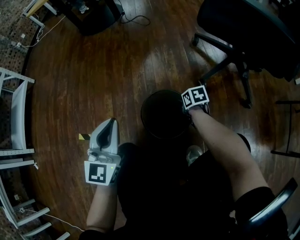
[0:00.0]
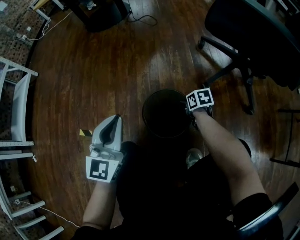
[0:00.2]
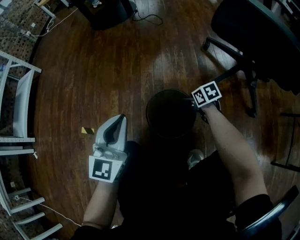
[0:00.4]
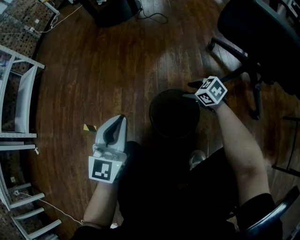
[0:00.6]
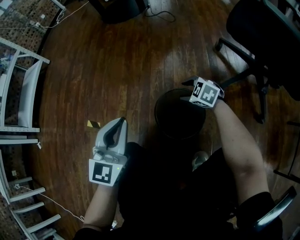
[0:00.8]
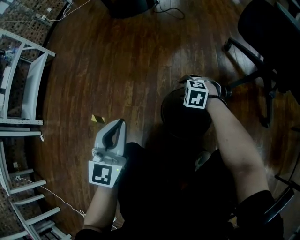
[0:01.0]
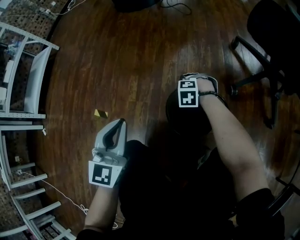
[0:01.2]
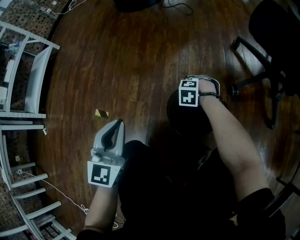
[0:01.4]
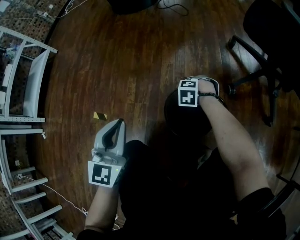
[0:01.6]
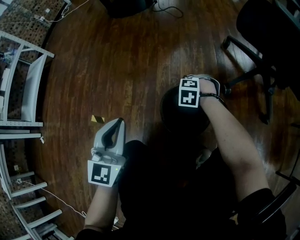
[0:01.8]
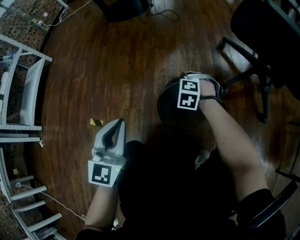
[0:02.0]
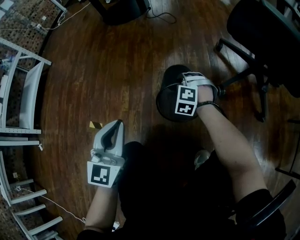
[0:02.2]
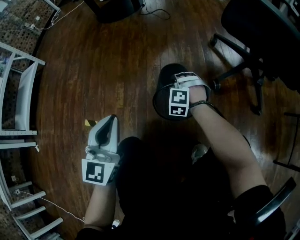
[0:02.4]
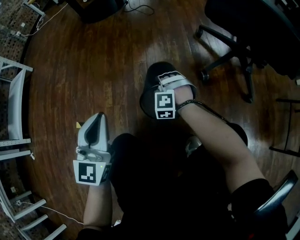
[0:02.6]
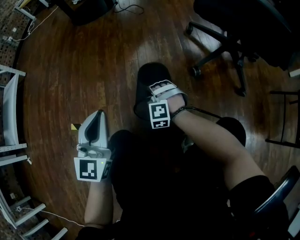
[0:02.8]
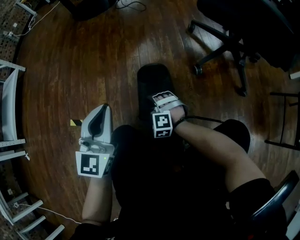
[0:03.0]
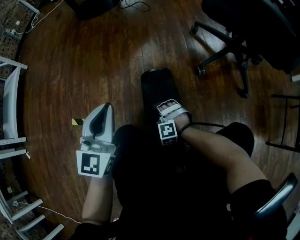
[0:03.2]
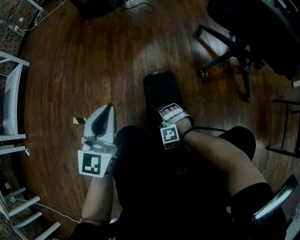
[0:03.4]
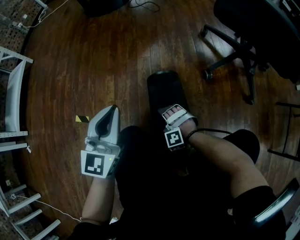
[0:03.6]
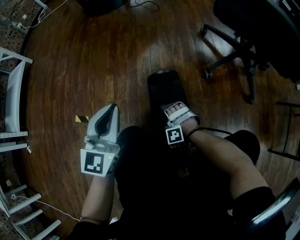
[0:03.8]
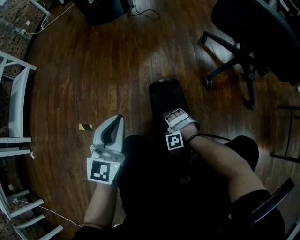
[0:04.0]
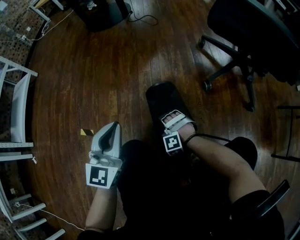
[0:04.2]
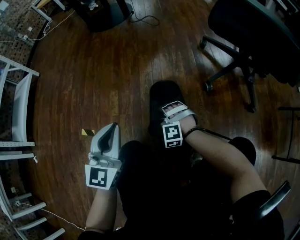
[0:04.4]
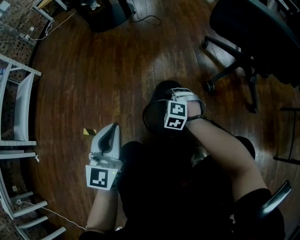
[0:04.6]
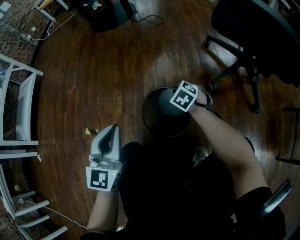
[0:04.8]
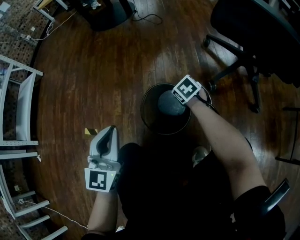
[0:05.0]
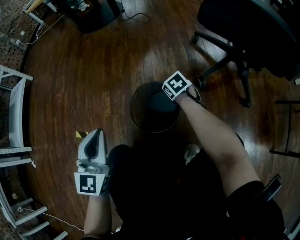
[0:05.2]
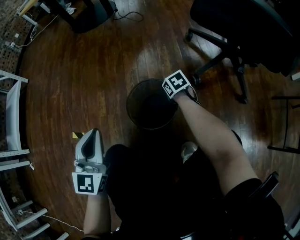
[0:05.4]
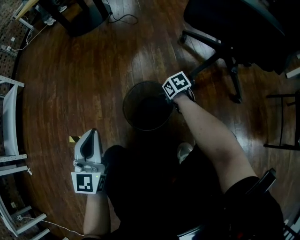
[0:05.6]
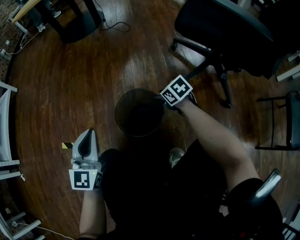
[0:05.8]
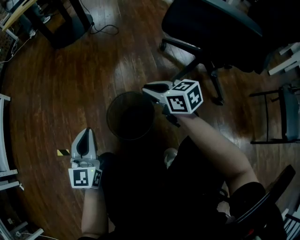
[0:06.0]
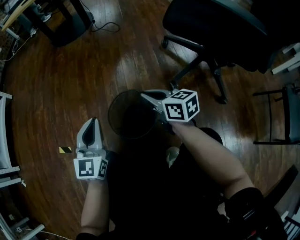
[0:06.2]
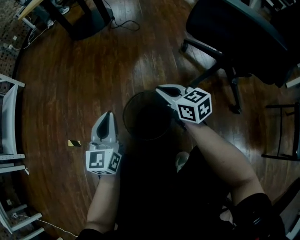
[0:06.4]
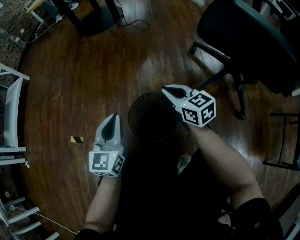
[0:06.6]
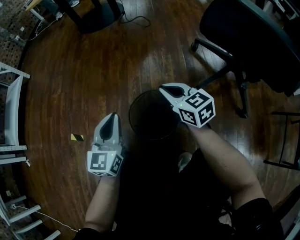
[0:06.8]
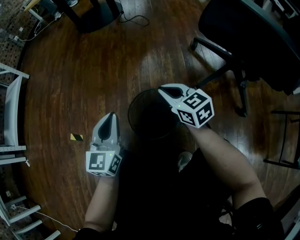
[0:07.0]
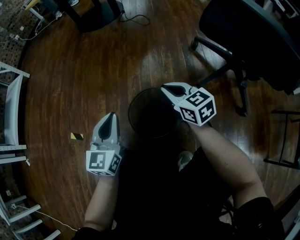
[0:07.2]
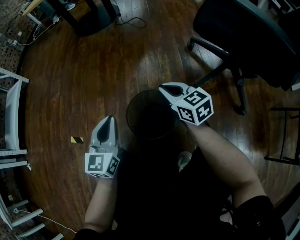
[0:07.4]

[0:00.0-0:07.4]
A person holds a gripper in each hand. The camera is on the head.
0:00.0 to 0:01.4: The left gripper moves some 5 cm. Meanwhile the right gripper moves roughly 10 cm upward and comes back, rotates around the line of its fingers by about 90 degrees, counterclockwise from behind, and opens and closes again.
0:01.4 to 0:03.0: The left gripper ends up some 5 cm from where it was. Meanwhile the right gripper reaches roughly 10 cm upward, then returns, and rotates roughly 30 degrees.
0:03.0 to 0:04.4: The right gripper moves some 5 cm backward and comes back, and opens and closes again.
0:04.4 to 0:06.0: The left gripper changes place by about 5 cm; the right gripper is displaced upward and to the right by approximately 20 cm, and rolls clockwise, seen from behind, by about 80 degrees.
0:06.0 to 0:07.4: There are only small adjustments of the grippers.

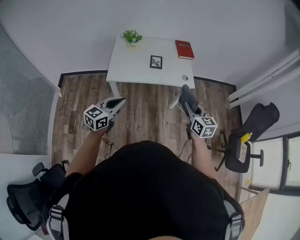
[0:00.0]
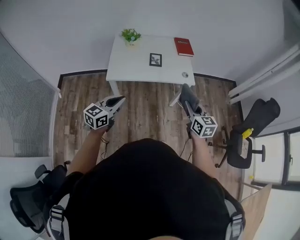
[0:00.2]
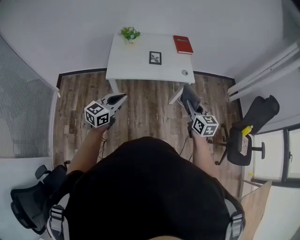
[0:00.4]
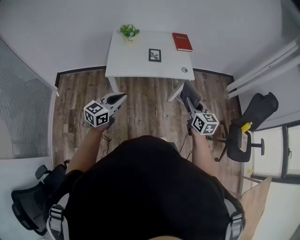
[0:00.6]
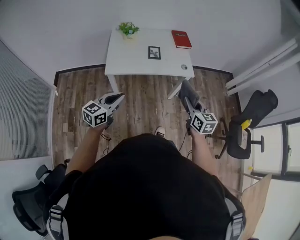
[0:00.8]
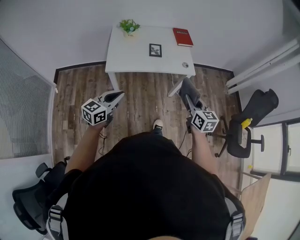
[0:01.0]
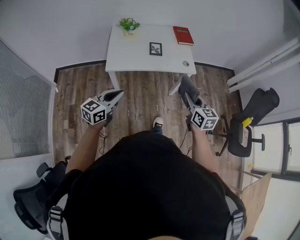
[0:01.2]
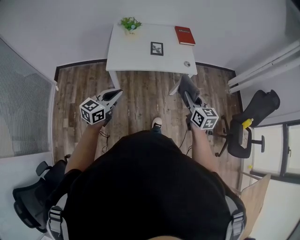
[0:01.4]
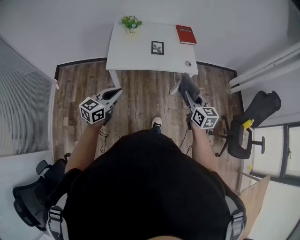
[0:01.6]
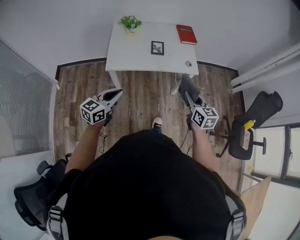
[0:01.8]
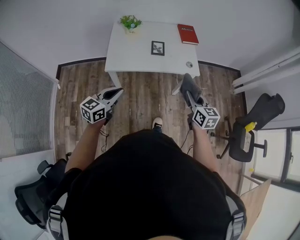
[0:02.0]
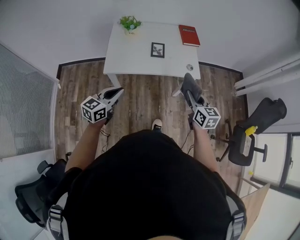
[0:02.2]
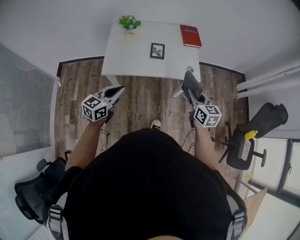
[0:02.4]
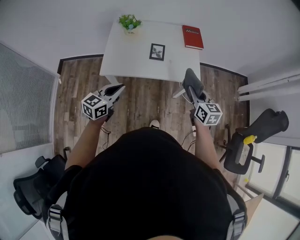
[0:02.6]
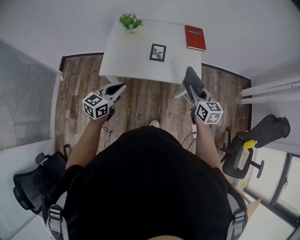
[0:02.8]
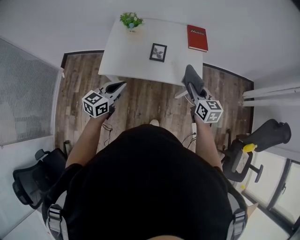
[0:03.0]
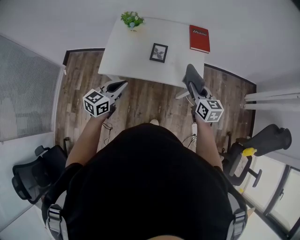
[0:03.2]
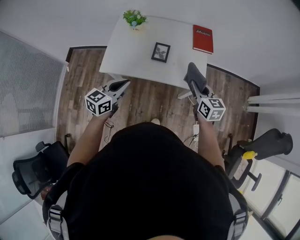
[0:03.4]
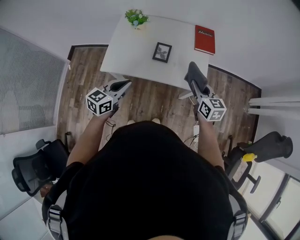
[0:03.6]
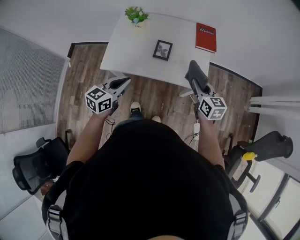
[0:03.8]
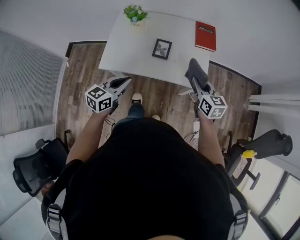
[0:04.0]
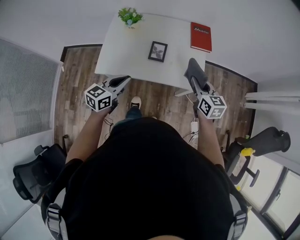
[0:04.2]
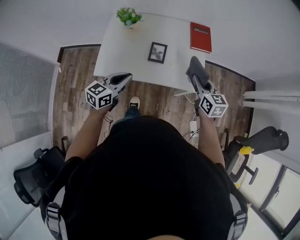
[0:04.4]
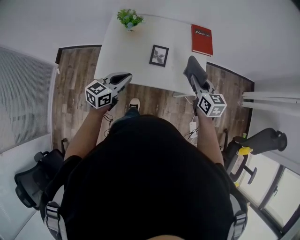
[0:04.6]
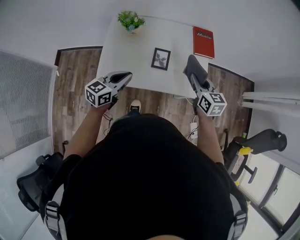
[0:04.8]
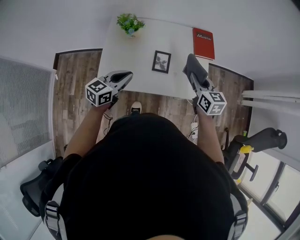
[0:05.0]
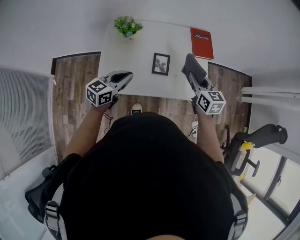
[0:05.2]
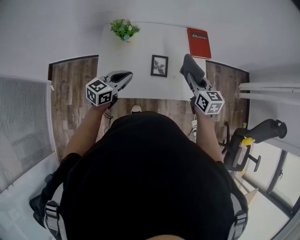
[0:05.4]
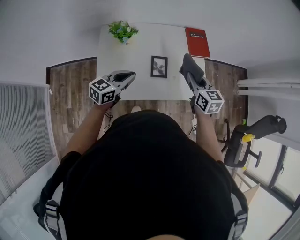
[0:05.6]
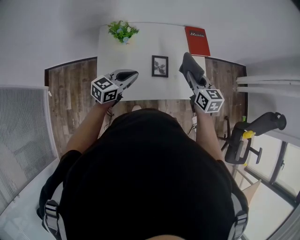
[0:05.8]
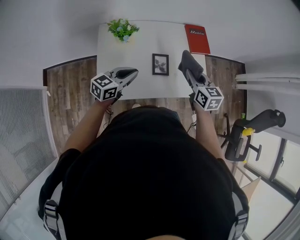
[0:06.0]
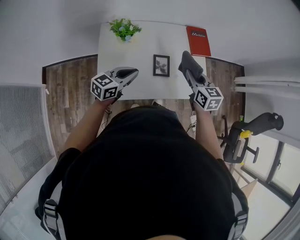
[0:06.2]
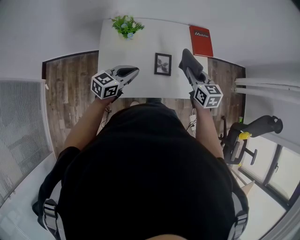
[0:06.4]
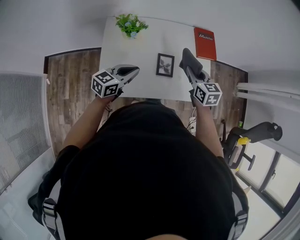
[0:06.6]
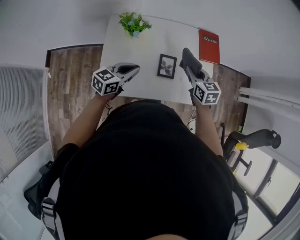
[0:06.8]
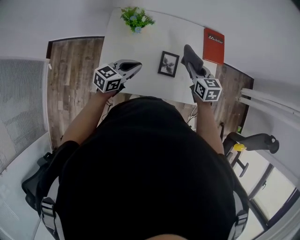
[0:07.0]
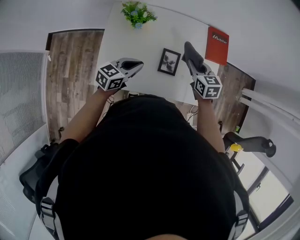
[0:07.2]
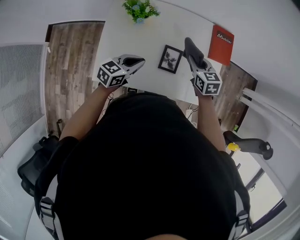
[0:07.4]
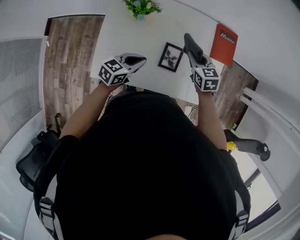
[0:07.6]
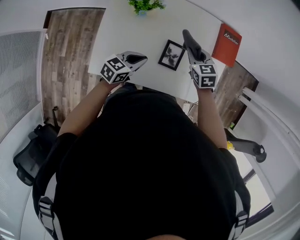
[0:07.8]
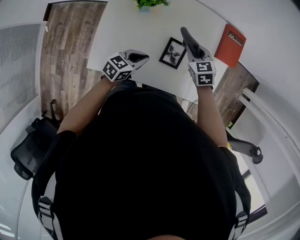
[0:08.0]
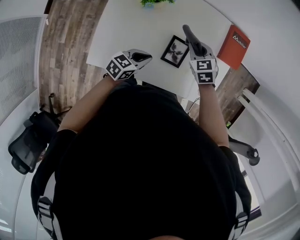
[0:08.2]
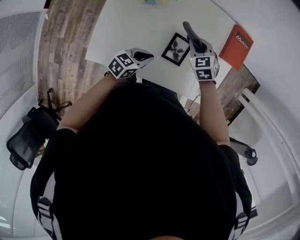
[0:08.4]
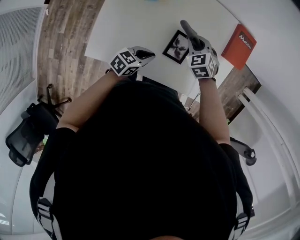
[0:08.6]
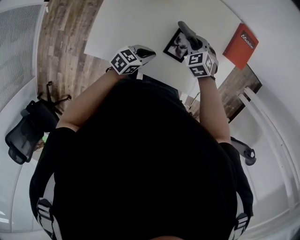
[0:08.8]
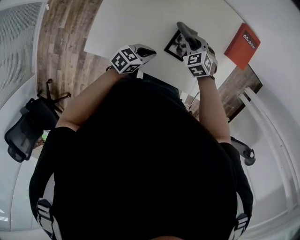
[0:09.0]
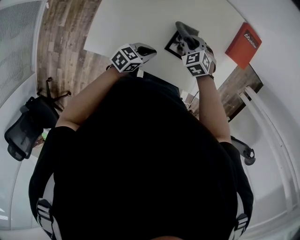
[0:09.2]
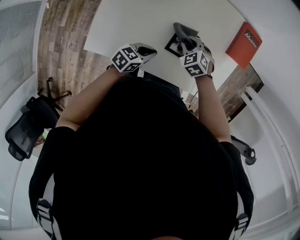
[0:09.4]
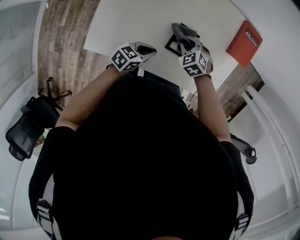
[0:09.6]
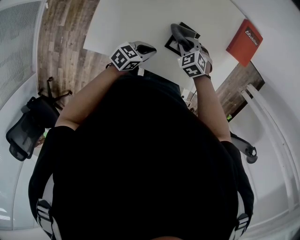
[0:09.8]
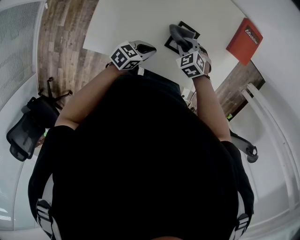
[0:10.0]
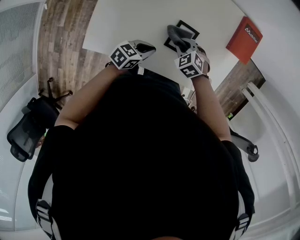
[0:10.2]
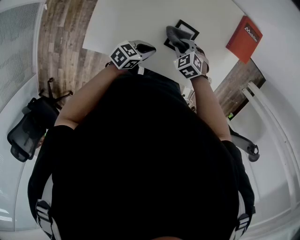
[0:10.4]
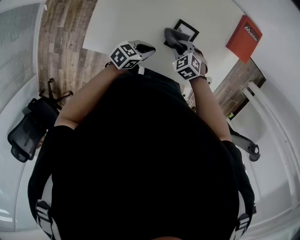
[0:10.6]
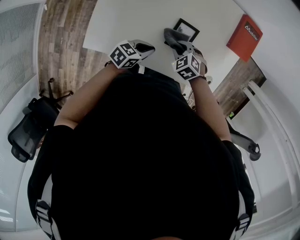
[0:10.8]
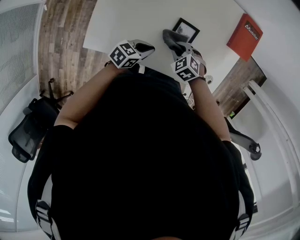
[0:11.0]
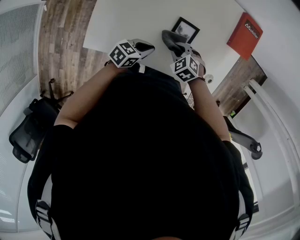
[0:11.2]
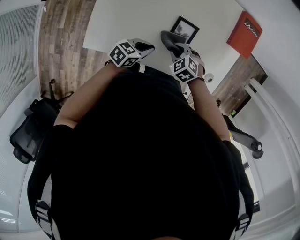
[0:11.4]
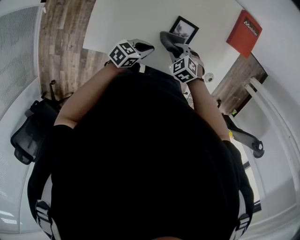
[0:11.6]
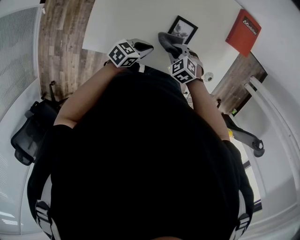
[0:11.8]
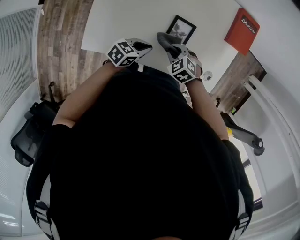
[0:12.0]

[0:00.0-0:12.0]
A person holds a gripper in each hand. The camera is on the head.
0:00.0 to 0:01.6: The grippers stay close to where they were, moving slightly.
0:01.6 to 0:03.0: The right gripper moves forward, roughly 25 cm. Meanwhile the left gripper goes about 20 cm forward and to the right.
0:03.0 to 0:04.4: The two grippers go about 10 cm forward.
0:04.4 to 0:06.0: The right gripper goes about 15 cm to the left and forward. Meanwhile the left gripper goes some 15 cm forward and to the left.
0:06.0 to 0:07.6: The right gripper heads downward, forward and to the left, covering about 20 cm, and turns by about 30 degrees; the left gripper goes approximately 15 cm downward and forward.
0:07.6 to 0:09.0: The left gripper is displaced downward and to the right by roughly 15 cm. The right gripper travels downward by some 15 cm, and swivels about 40 degrees.
0:09.0 to 0:10.4: The right gripper goes approximately 10 cm backward.
0:10.4 to 0:12.0: The right gripper ends up about 5 cm from where it was.

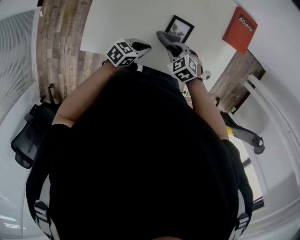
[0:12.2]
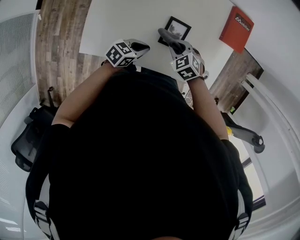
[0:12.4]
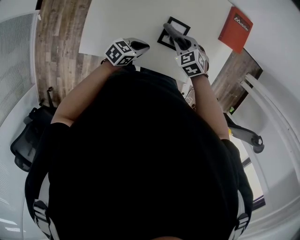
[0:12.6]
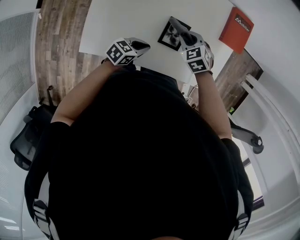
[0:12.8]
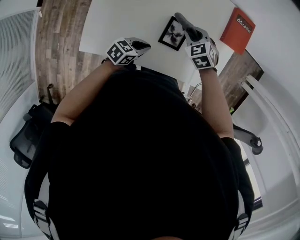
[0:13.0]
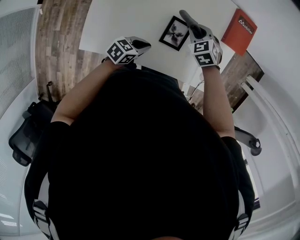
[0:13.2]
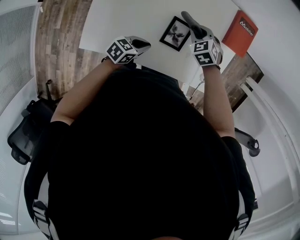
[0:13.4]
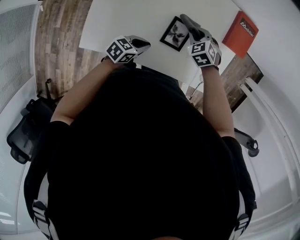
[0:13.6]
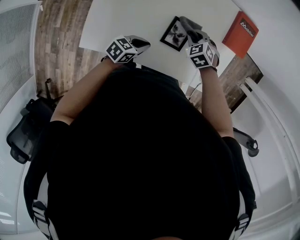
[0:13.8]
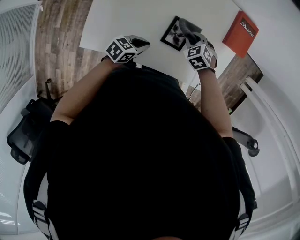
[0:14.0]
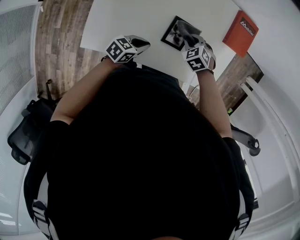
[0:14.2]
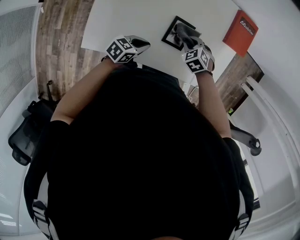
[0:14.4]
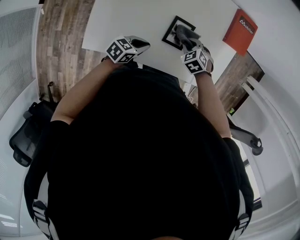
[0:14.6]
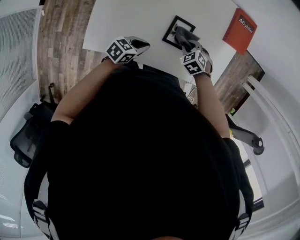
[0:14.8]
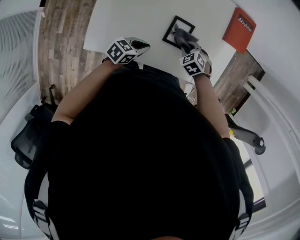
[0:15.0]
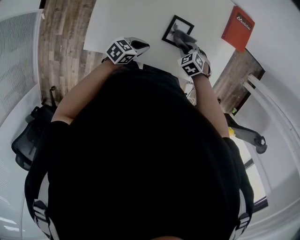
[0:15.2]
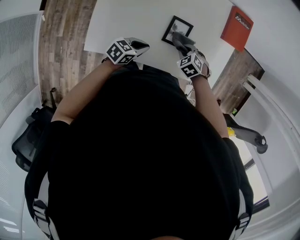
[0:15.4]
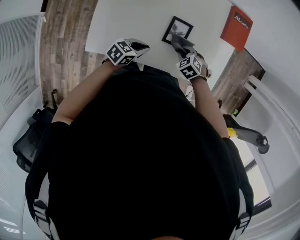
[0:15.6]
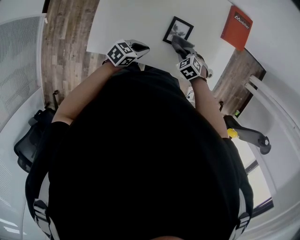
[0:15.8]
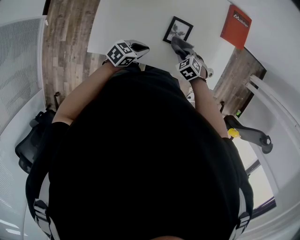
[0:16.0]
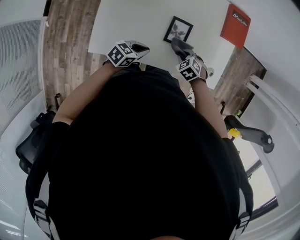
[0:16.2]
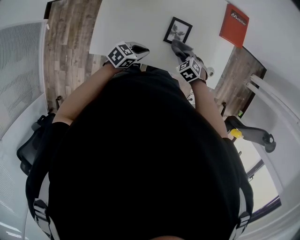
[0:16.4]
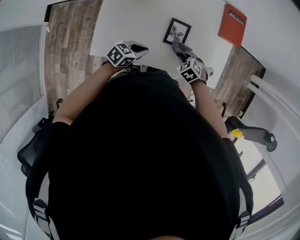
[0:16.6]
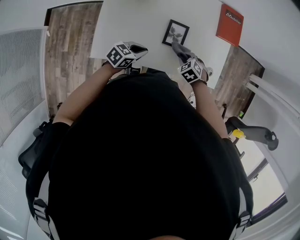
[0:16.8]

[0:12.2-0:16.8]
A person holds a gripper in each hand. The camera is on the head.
0:12.2 to 0:13.8: The right gripper ends up approximately 15 cm from where it was.
0:13.8 to 0:15.2: The right gripper goes some 10 cm backward.
0:15.2 to 0:16.8: The right gripper ends up roughly 5 cm from where it was.
